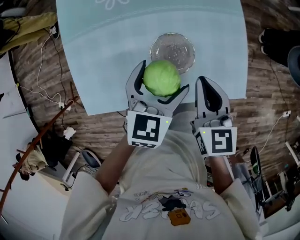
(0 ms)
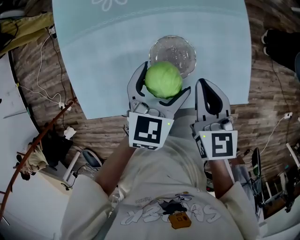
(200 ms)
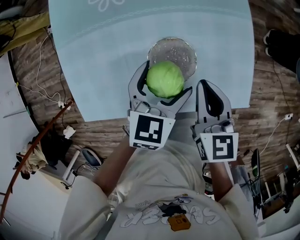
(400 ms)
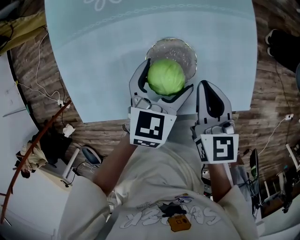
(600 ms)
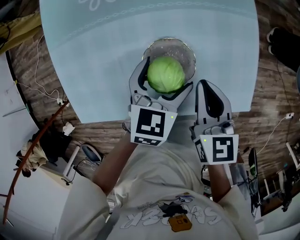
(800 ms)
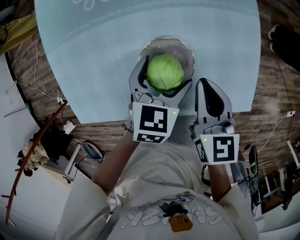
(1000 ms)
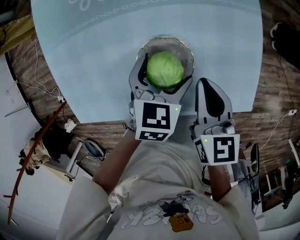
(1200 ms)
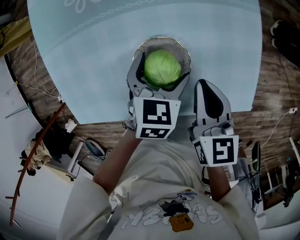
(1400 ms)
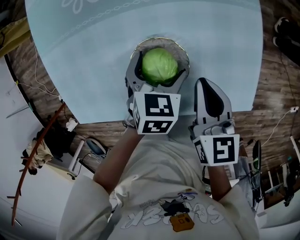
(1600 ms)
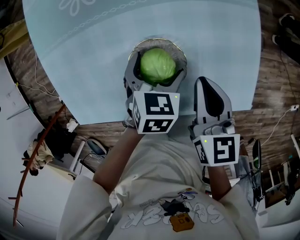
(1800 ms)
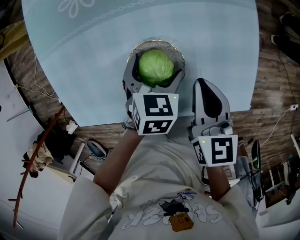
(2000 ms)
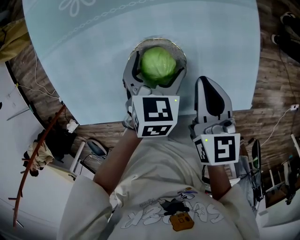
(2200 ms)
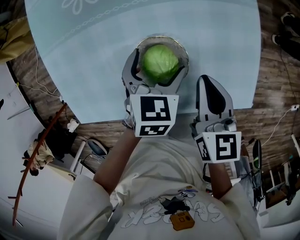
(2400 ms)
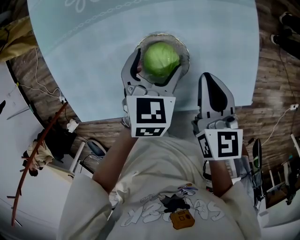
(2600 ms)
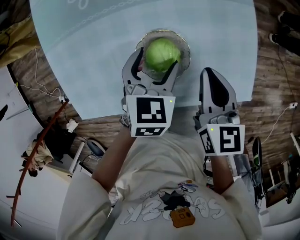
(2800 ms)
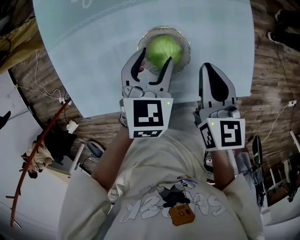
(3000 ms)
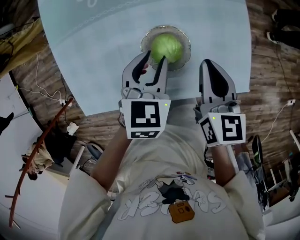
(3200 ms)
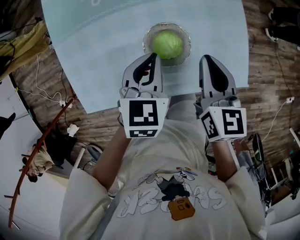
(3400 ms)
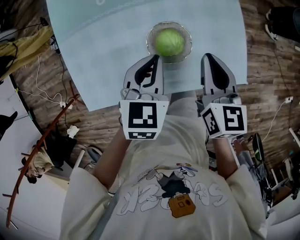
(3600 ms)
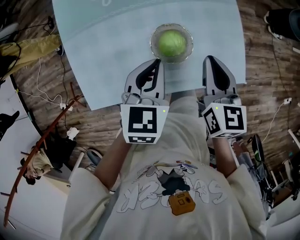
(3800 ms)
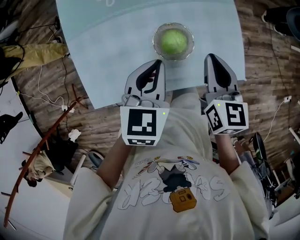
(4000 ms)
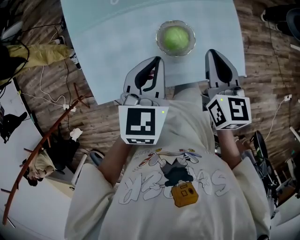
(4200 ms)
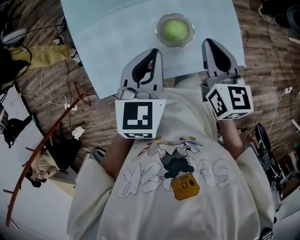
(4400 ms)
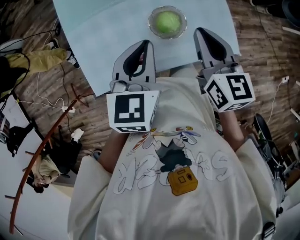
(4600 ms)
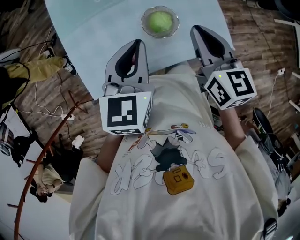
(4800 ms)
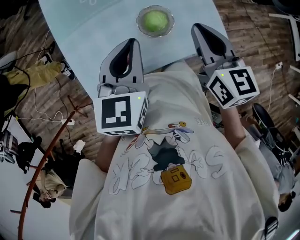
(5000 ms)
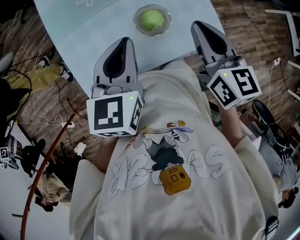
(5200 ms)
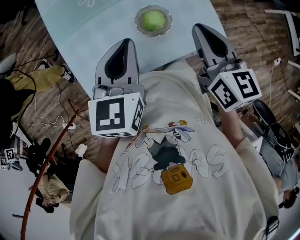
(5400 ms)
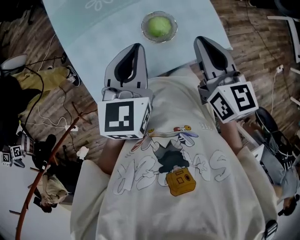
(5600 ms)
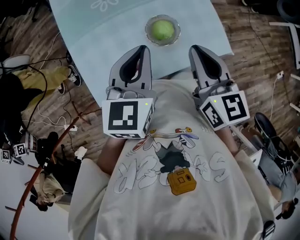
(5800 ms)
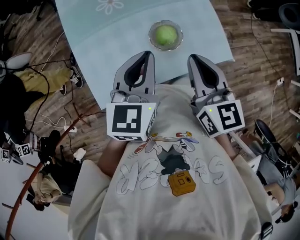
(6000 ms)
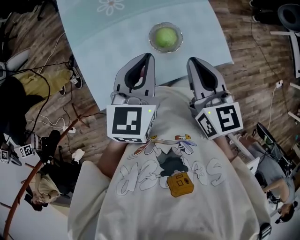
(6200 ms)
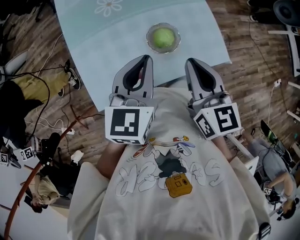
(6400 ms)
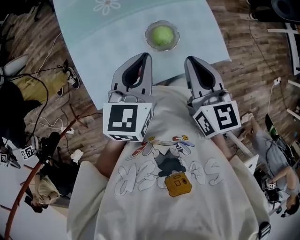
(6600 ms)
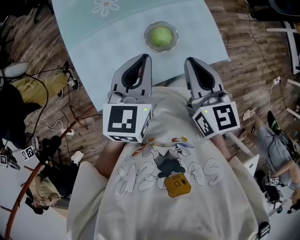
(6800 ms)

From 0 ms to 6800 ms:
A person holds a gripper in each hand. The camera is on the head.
From 0 ms to 1400 ms: The right gripper moves downward, approximately 10 cm; the left gripper moves downward, roughly 15 cm.
From 1400 ms to 2800 ms: The grippers make only small movements.
From 2800 ms to 4000 ms: The right gripper shifts approximately 10 cm upward. The left gripper is displaced upward and backward by approximately 15 cm, and closes its fingers.
From 4000 ms to 5400 ms: The left gripper is displaced upward and to the left by roughly 10 cm; the right gripper shifts some 15 cm upward and backward.
From 5400 ms to 6800 ms: The grippers make only small movements.

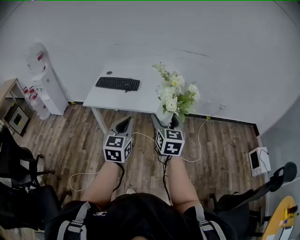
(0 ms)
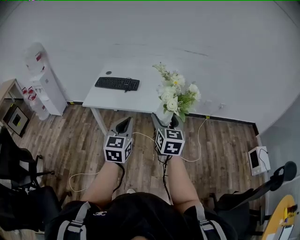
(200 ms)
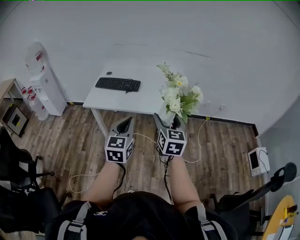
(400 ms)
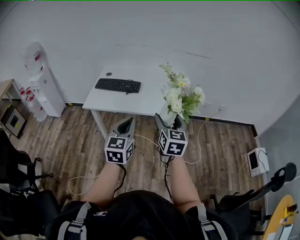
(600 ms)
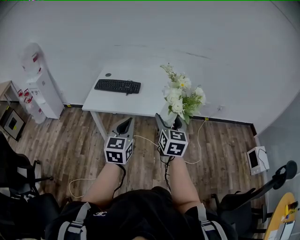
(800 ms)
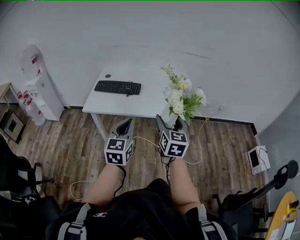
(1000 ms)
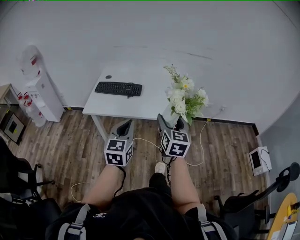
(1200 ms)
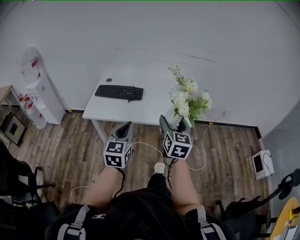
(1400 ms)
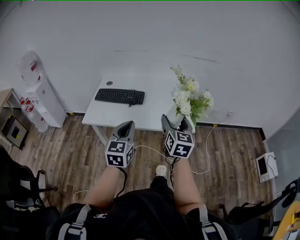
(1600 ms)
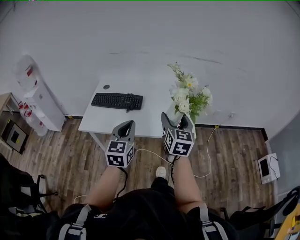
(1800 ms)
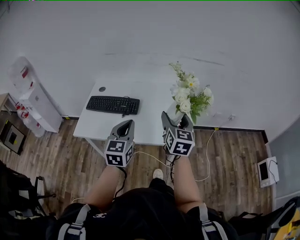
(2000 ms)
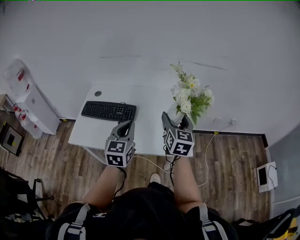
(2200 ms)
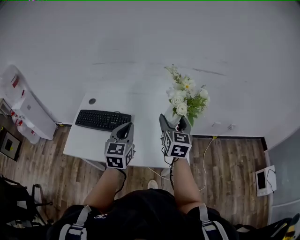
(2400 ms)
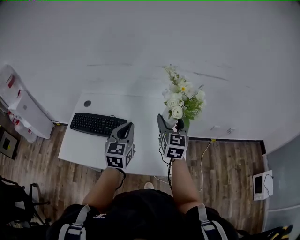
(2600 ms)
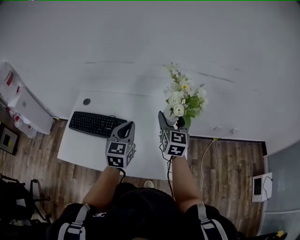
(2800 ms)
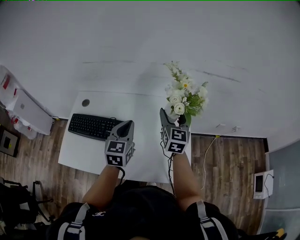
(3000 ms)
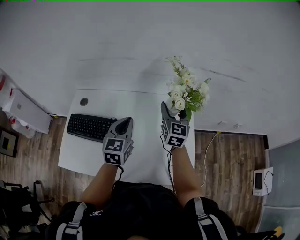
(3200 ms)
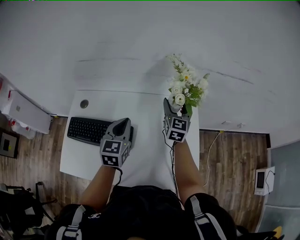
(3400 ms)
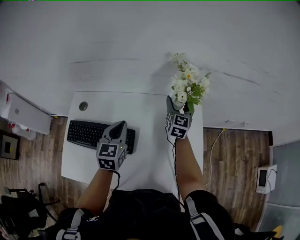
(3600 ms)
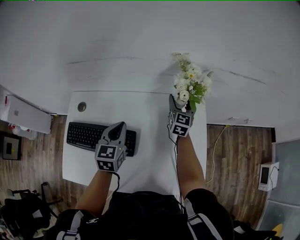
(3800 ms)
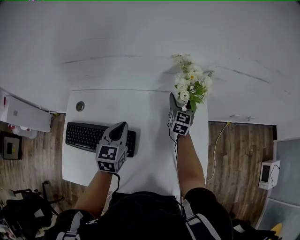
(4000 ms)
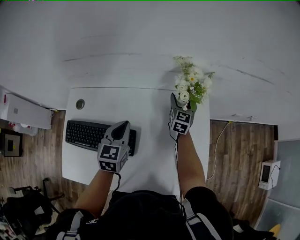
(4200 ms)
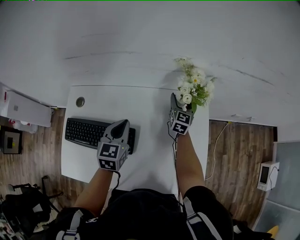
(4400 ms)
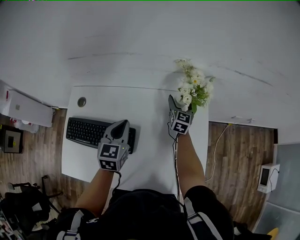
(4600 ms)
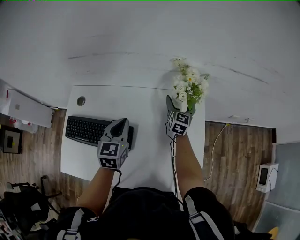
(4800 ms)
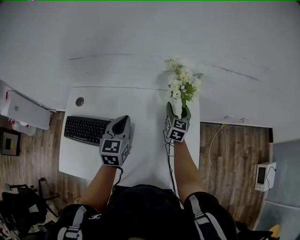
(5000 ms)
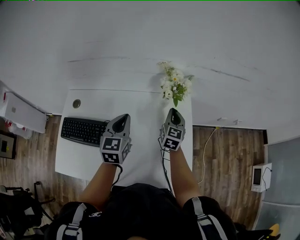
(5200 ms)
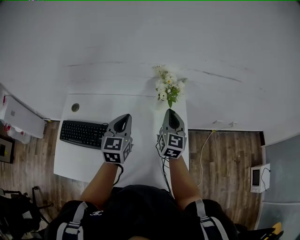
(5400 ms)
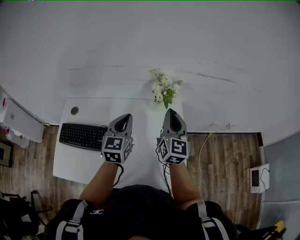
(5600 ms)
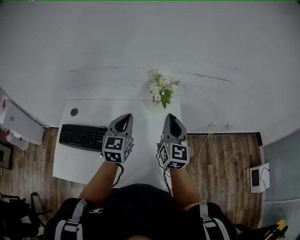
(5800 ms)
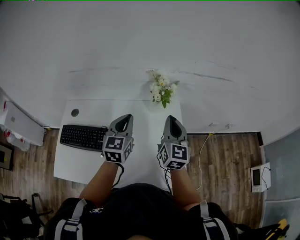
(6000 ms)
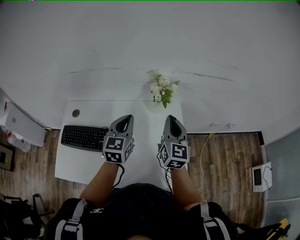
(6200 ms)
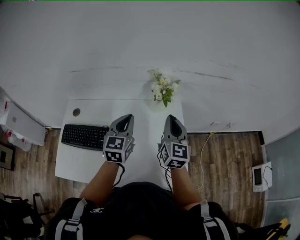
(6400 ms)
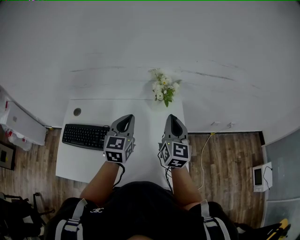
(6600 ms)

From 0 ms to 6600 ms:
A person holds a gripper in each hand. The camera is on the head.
From 0 ms to 1600 ms: The right gripper moves forward, roughly 20 cm. Meanwhile the left gripper moves forward and to the left, some 20 cm.
From 1600 ms to 3200 ms: The pair of grippers is taken forward, roughly 60 cm.
From 3200 ms to 5000 ms: The left gripper heads forward and downward, covering some 10 cm. Meanwhile the right gripper travels downward and forward by roughly 20 cm.
From 5000 ms to 6600 ms: The right gripper shifts roughly 30 cm upward and backward, and closes its fingers; the left gripper shifts some 15 cm upward, to the right and backward.

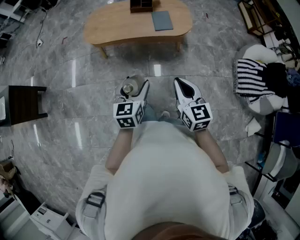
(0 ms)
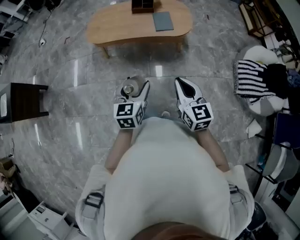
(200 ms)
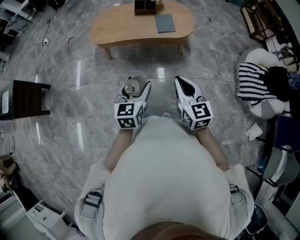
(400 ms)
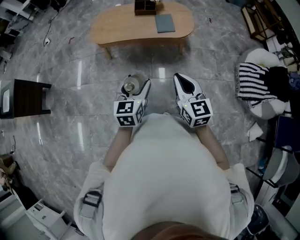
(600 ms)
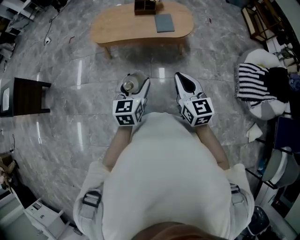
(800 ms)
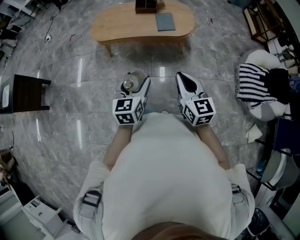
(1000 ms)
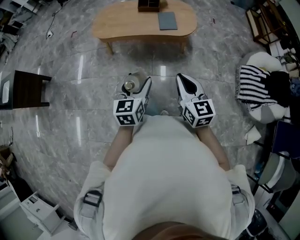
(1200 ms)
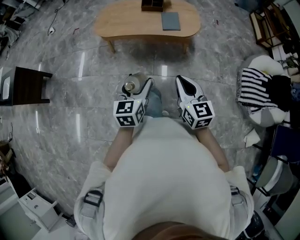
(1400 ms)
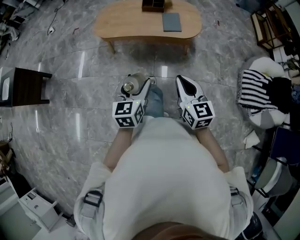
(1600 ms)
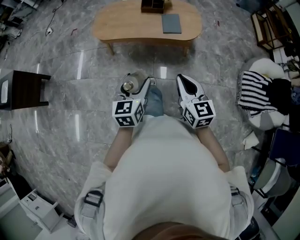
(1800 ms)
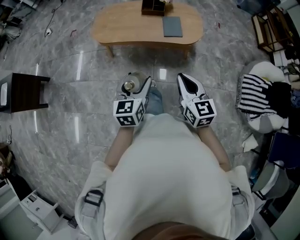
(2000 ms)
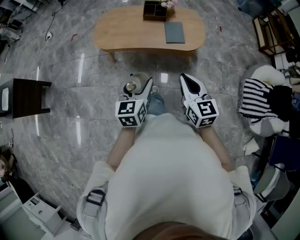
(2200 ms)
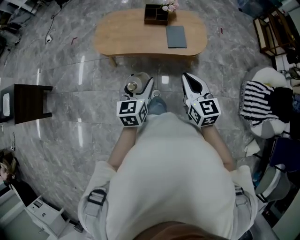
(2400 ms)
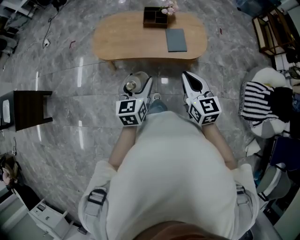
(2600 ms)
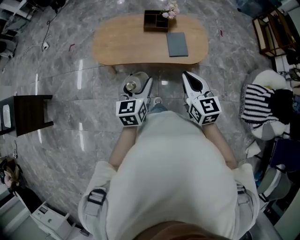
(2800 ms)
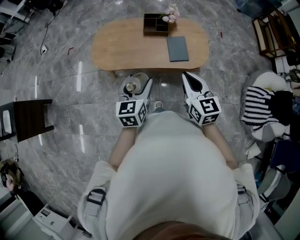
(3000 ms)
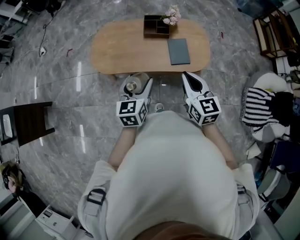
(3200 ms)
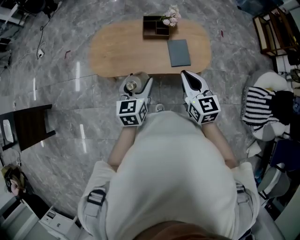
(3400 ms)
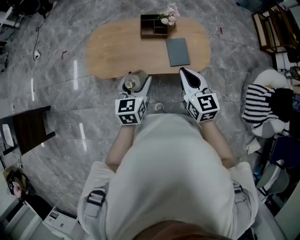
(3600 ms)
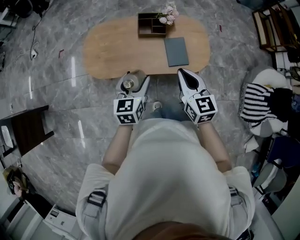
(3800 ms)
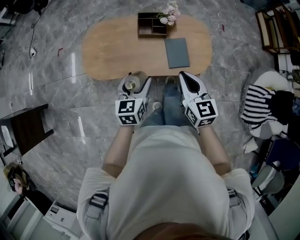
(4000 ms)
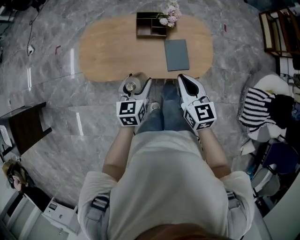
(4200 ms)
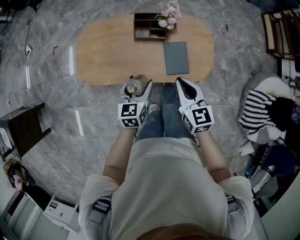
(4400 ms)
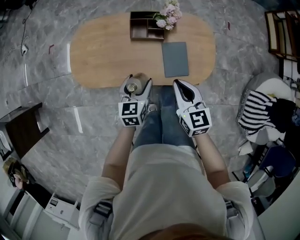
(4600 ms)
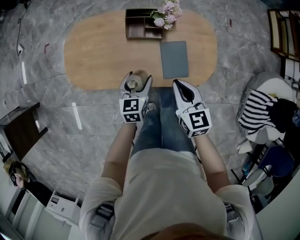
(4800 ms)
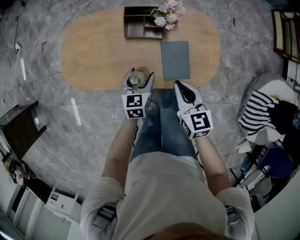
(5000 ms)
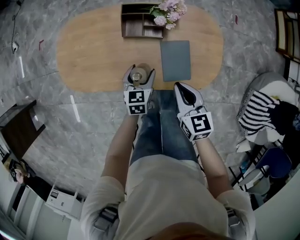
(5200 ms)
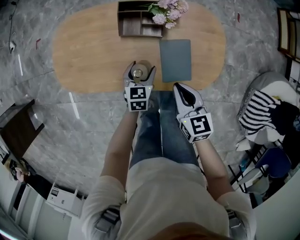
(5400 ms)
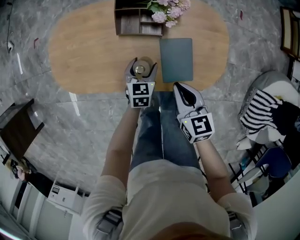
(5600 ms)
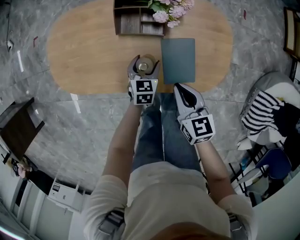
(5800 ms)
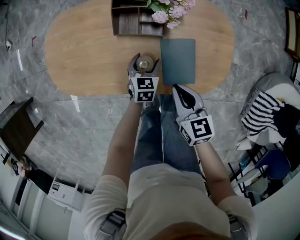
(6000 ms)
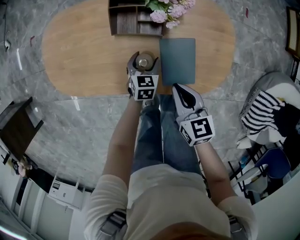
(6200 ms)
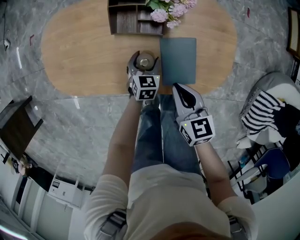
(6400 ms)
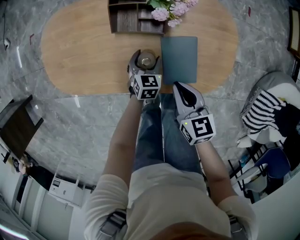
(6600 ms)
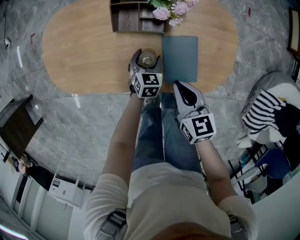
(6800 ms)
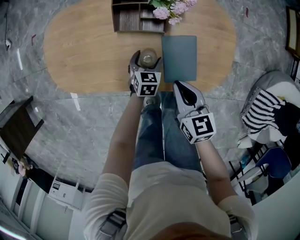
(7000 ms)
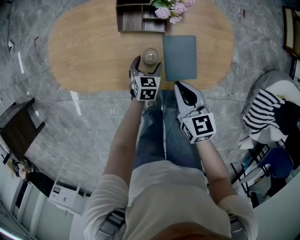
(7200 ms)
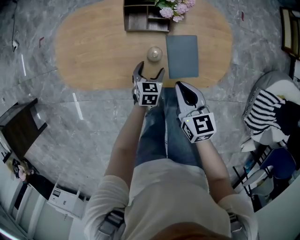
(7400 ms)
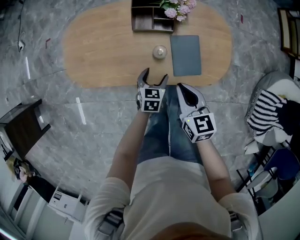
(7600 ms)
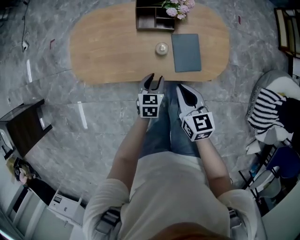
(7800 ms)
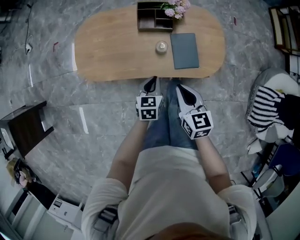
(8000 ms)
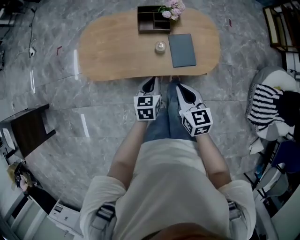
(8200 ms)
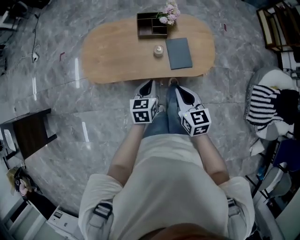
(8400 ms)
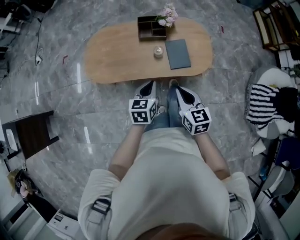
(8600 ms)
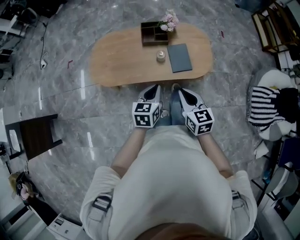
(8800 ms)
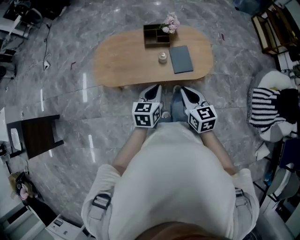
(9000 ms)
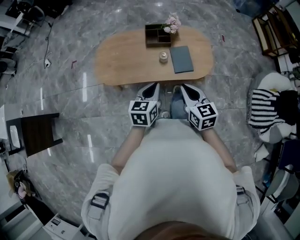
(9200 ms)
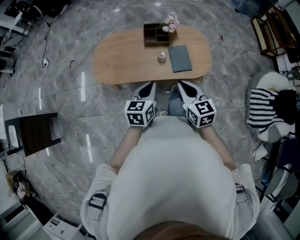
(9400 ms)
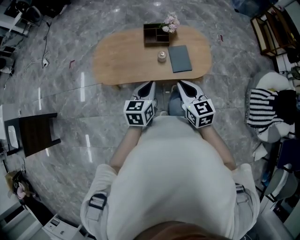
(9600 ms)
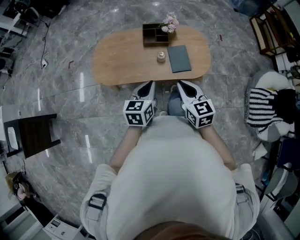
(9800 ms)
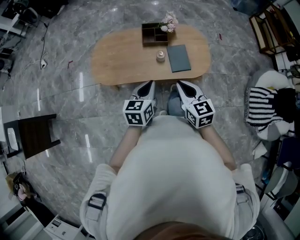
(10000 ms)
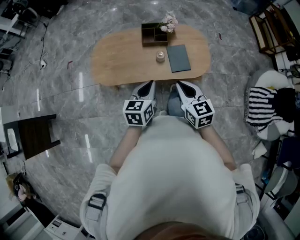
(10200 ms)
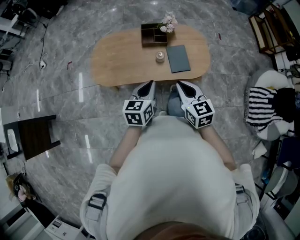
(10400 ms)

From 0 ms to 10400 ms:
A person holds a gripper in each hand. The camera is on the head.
From 0 ms to 1400 ms: The left gripper shifts by about 5 cm.
From 1400 ms to 3000 ms: Both grippers travel together forward, some 30 cm.
From 3000 ms to 4400 ms: The two grippers go some 20 cm forward and downward.
From 4400 ms to 6000 ms: The right gripper heads downward, covering some 20 cm. The left gripper travels downward and forward by some 30 cm.
From 6000 ms to 7400 ms: The left gripper moves backward, some 5 cm. The right gripper shifts by roughly 5 cm.
From 7400 ms to 9000 ms: The left gripper travels upward and backward by some 40 cm, turns by about 20 degrees, and closes its fingers. Meanwhile the right gripper goes approximately 30 cm backward and upward.
From 9000 ms to 10400 ms: The grippers stay close to where they were, moving slightly.
